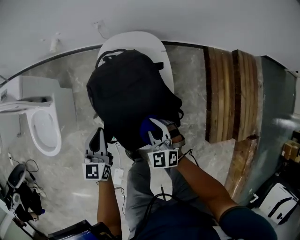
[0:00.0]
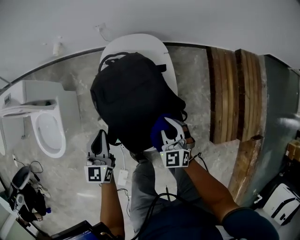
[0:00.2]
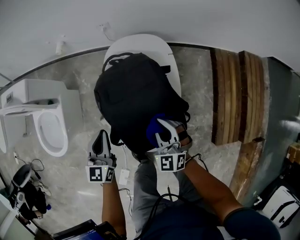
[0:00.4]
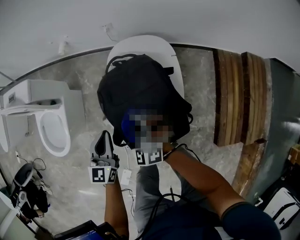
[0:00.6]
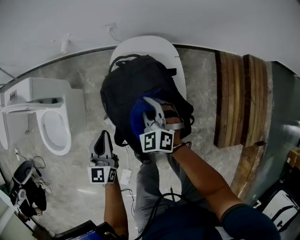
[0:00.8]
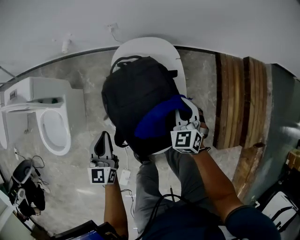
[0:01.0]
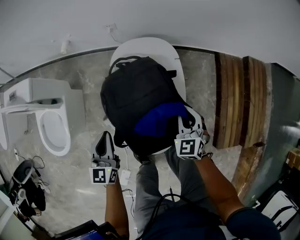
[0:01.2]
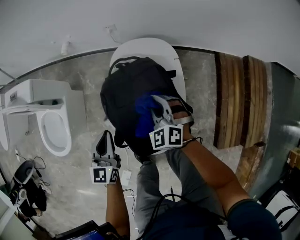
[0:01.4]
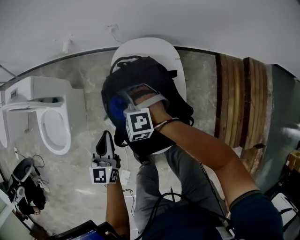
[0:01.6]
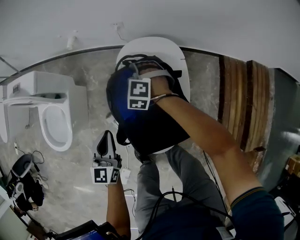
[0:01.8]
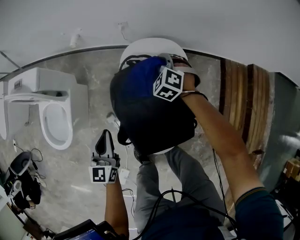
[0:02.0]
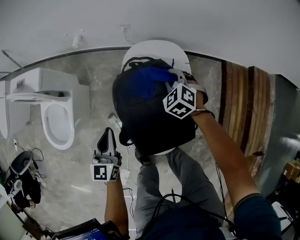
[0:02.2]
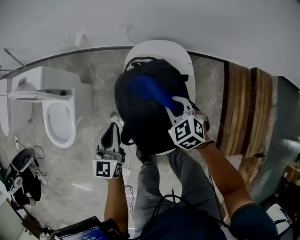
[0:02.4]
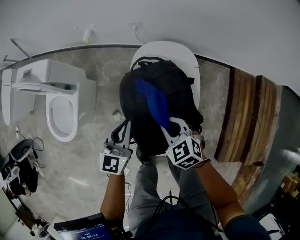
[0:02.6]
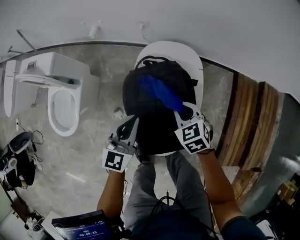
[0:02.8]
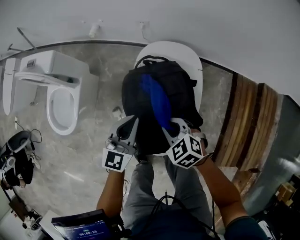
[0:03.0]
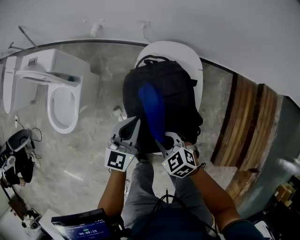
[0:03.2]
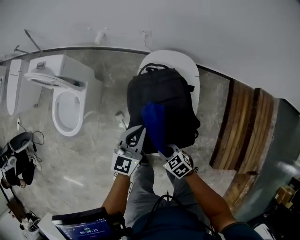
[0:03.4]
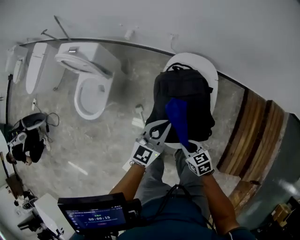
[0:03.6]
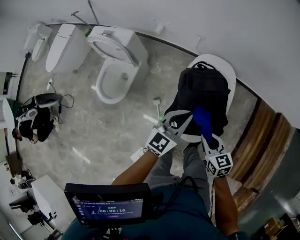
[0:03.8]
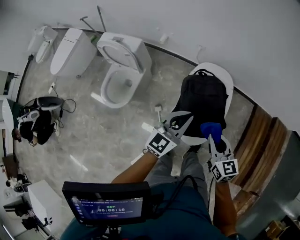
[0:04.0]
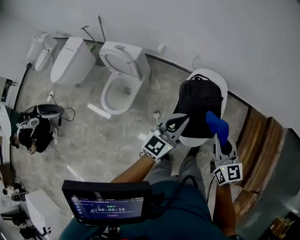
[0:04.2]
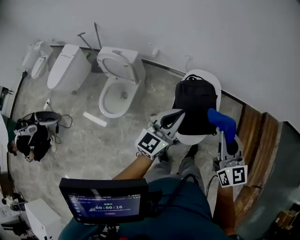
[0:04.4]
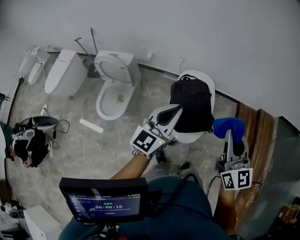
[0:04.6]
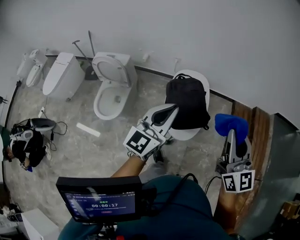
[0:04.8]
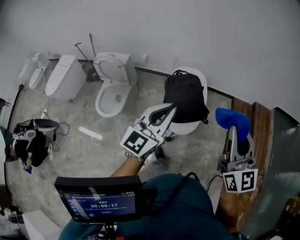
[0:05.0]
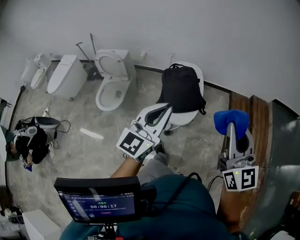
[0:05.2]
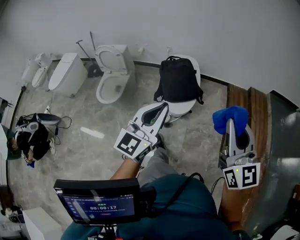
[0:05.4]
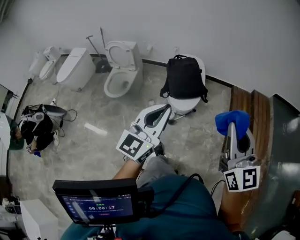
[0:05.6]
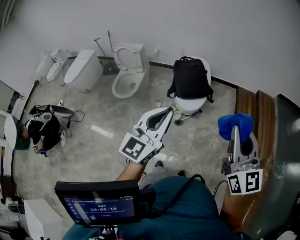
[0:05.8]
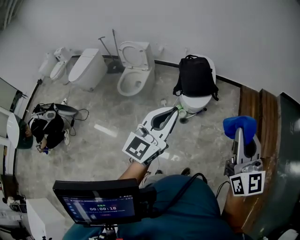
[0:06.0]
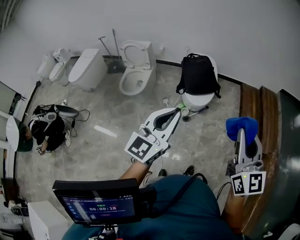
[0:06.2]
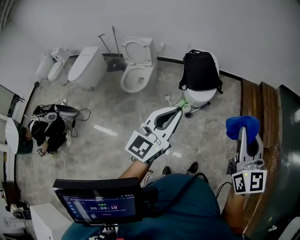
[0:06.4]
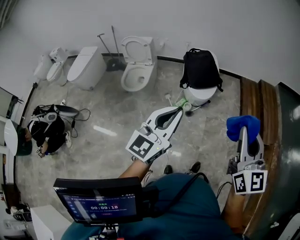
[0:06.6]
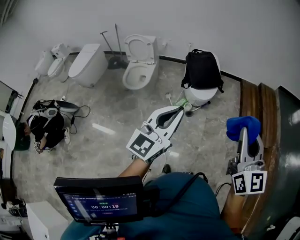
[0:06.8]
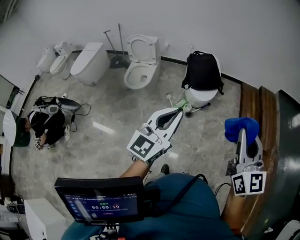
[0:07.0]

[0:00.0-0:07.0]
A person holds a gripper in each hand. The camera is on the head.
0:00.0 to 0:01.4: The right gripper swings left and right, some 20 cm each way, with 3 reversals.
0:01.4 to 0:02.8: The right gripper moves forward and backward over about 25 cm, changing direction 2 times, and swivels about 30 degrees; the left gripper goes some 5 cm to the right.
0:02.8 to 0:04.2: The grippers both shift upward by approximately 30 cm. The right gripper tips its fingers upward by about 40 degrees.
0:04.2 to 0:05.6: Both grippers are carried backward, roughly 40 cm. Both grippers travel together upward, approximately 20 cm. The right gripper turns by about 20 degrees.
0:05.6 to 0:07.0: Both grippers travel together backward and to the left, approximately 20 cm.

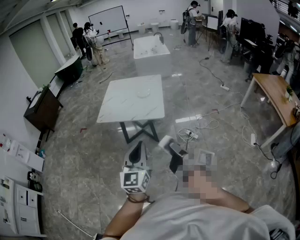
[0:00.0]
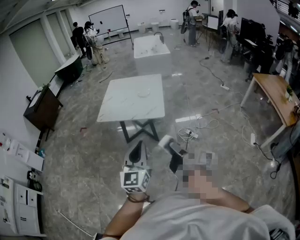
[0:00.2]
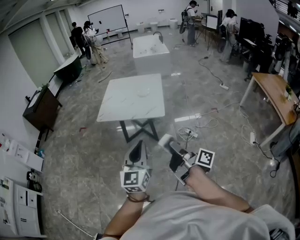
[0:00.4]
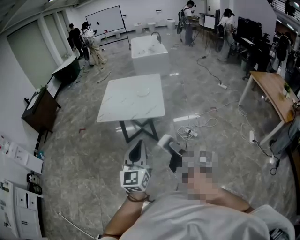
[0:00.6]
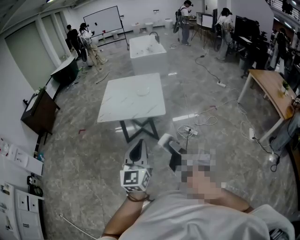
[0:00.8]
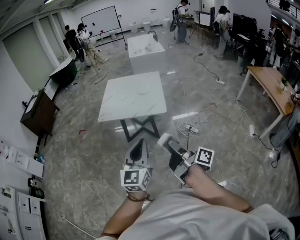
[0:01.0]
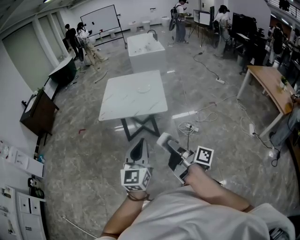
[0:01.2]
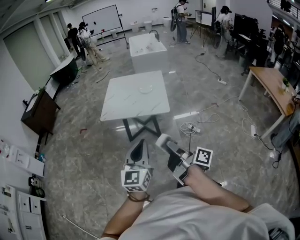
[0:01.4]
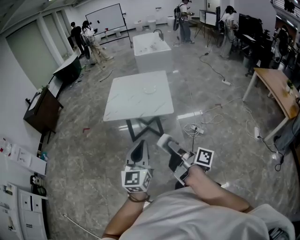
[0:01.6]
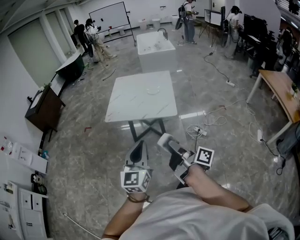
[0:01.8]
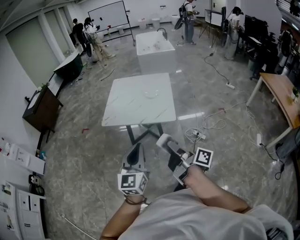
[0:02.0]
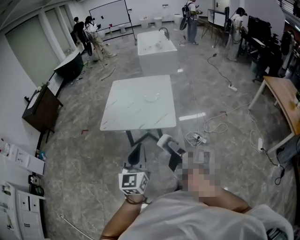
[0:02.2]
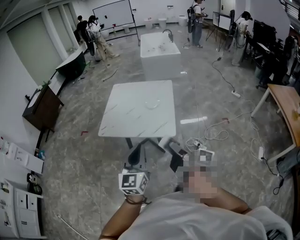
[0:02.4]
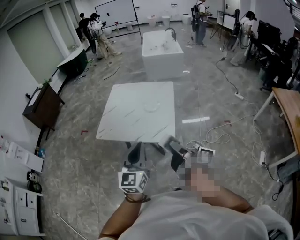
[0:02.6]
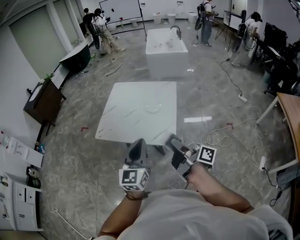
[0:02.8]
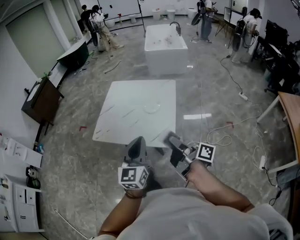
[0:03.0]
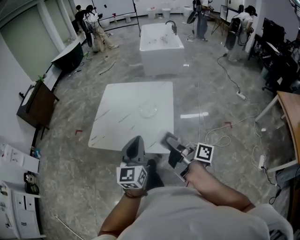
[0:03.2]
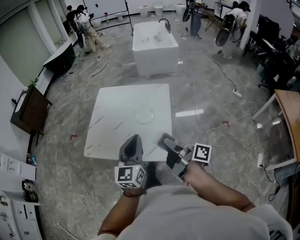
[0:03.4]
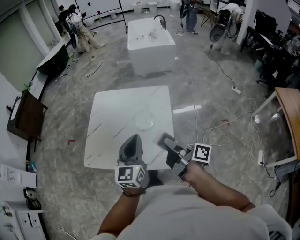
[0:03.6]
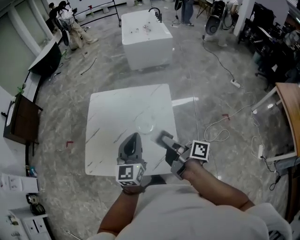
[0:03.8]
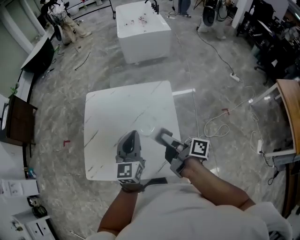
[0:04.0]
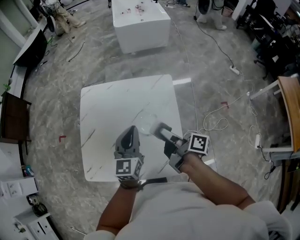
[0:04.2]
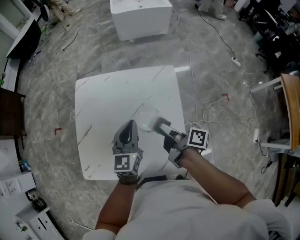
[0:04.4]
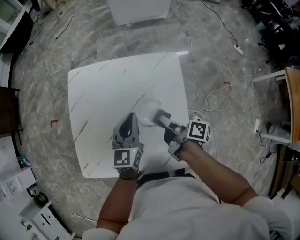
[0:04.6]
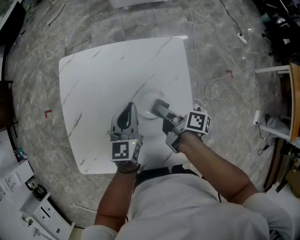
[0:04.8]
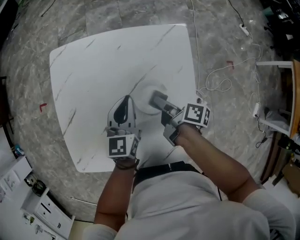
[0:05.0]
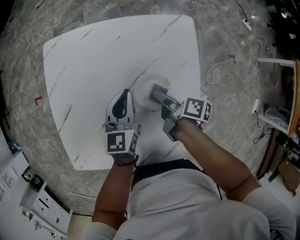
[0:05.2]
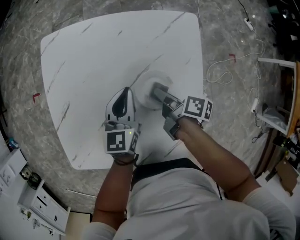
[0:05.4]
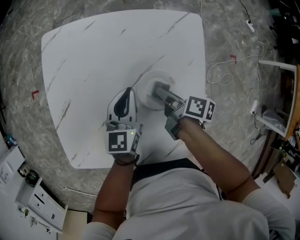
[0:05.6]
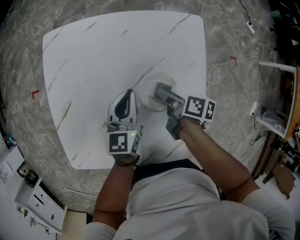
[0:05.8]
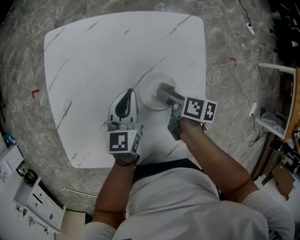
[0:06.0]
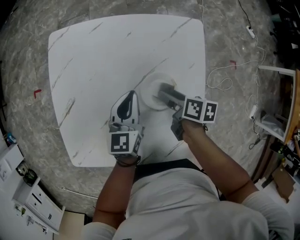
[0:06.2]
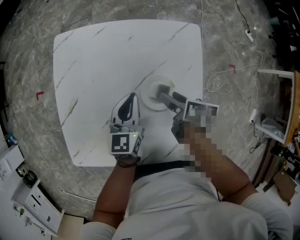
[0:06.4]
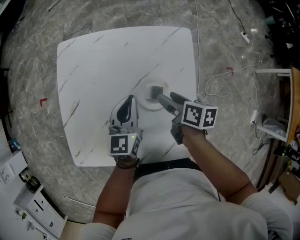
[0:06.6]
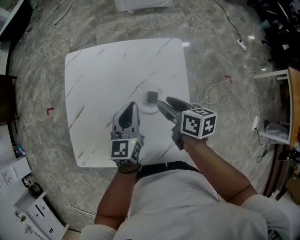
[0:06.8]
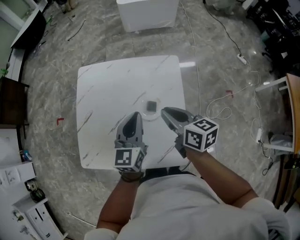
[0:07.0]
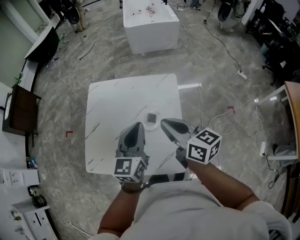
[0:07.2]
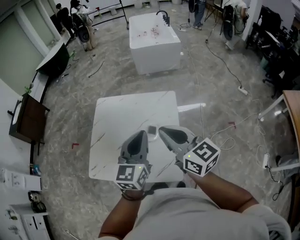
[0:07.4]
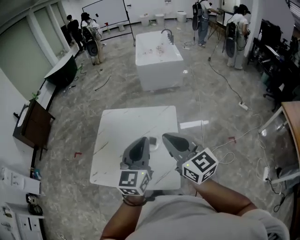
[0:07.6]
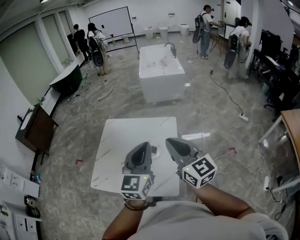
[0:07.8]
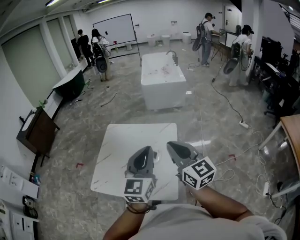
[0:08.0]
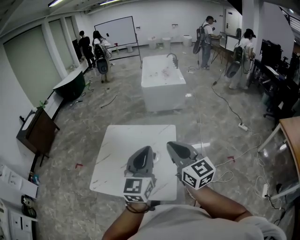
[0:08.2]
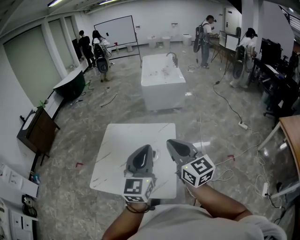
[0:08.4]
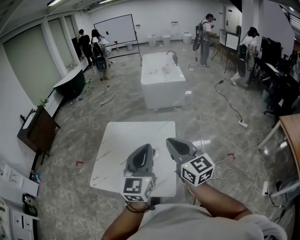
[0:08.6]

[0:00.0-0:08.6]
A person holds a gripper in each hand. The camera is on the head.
0:00.0 to 0:01.4: The left gripper changes place by some 10 cm.
0:01.4 to 0:02.8: The left gripper changes place by approximately 40 cm.
0:02.8 to 0:04.4: The left gripper changes place by some 60 cm.
0:04.4 to 0:05.8: The left gripper travels downward by some 20 cm.
0:05.8 to 0:07.2: The left gripper moves upward, about 35 cm.
0:07.2 to 0:08.6: The left gripper moves approximately 30 cm.

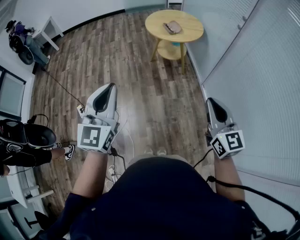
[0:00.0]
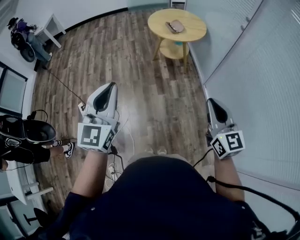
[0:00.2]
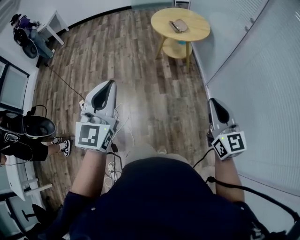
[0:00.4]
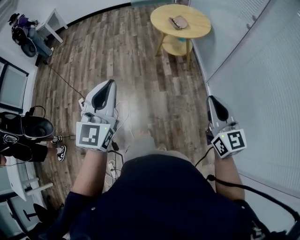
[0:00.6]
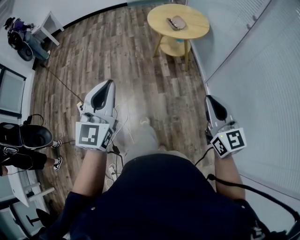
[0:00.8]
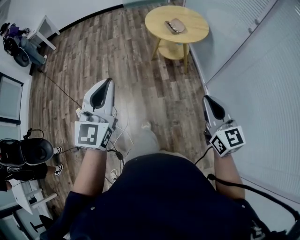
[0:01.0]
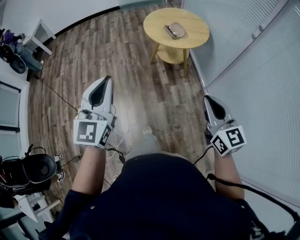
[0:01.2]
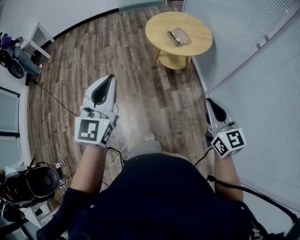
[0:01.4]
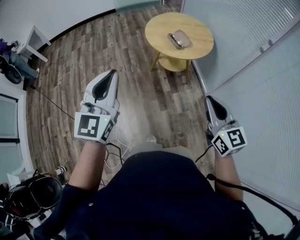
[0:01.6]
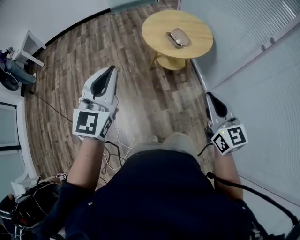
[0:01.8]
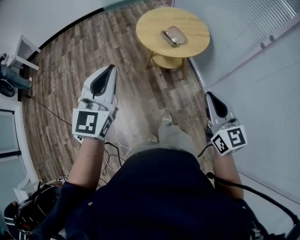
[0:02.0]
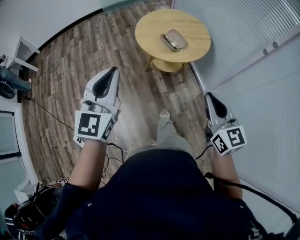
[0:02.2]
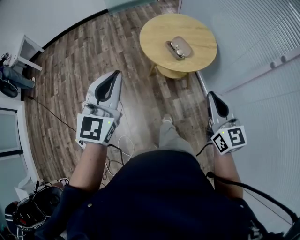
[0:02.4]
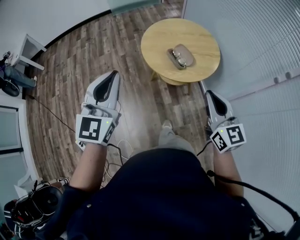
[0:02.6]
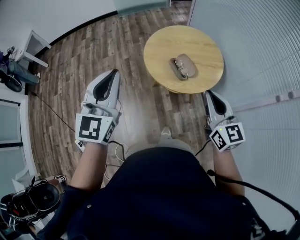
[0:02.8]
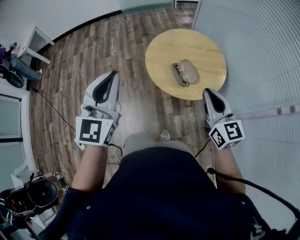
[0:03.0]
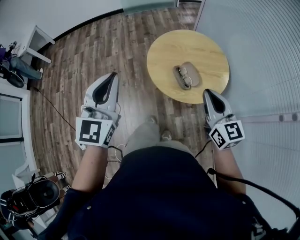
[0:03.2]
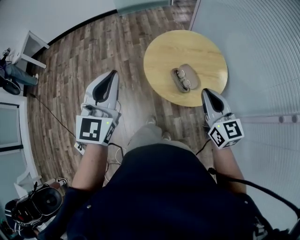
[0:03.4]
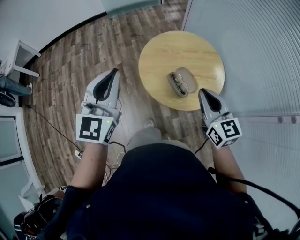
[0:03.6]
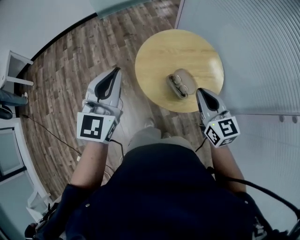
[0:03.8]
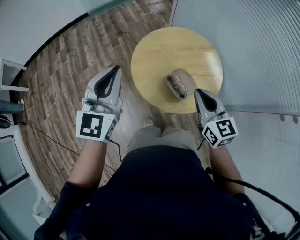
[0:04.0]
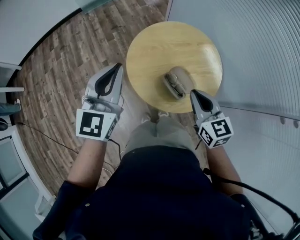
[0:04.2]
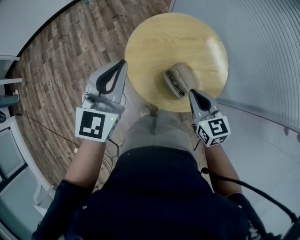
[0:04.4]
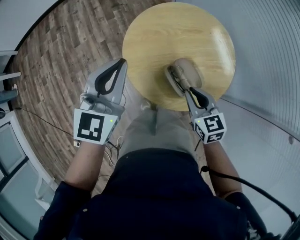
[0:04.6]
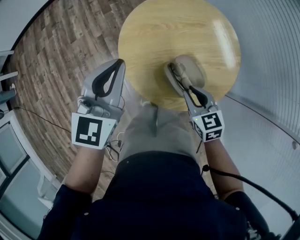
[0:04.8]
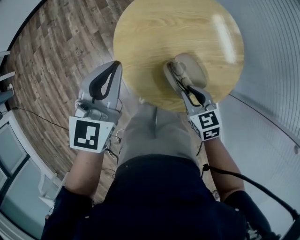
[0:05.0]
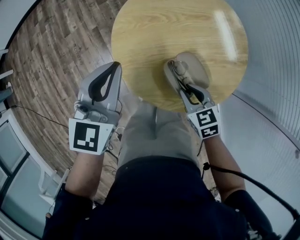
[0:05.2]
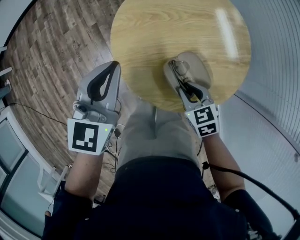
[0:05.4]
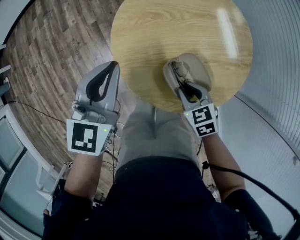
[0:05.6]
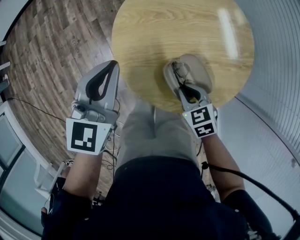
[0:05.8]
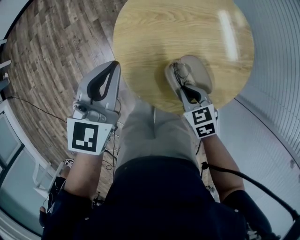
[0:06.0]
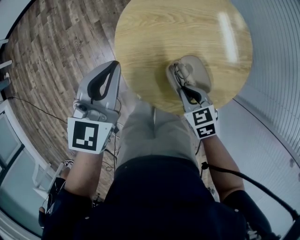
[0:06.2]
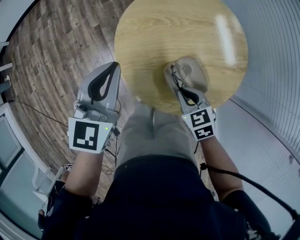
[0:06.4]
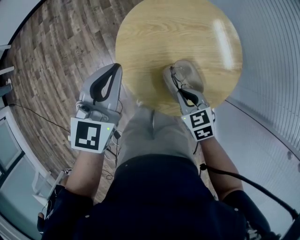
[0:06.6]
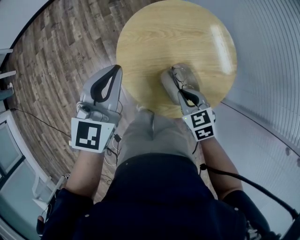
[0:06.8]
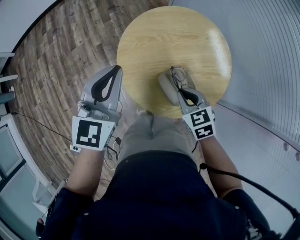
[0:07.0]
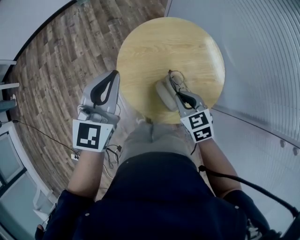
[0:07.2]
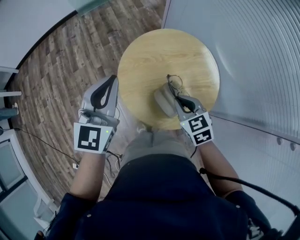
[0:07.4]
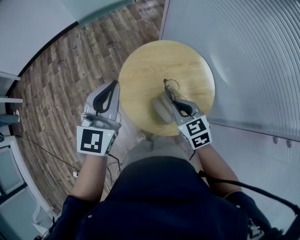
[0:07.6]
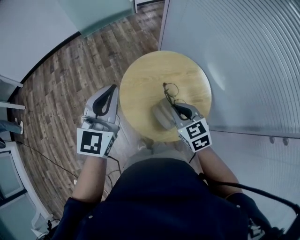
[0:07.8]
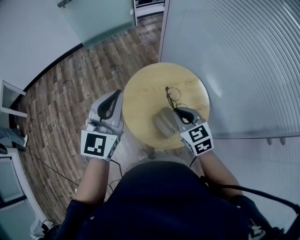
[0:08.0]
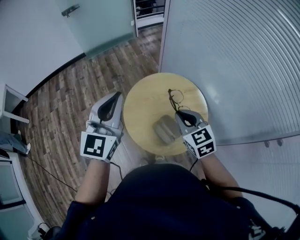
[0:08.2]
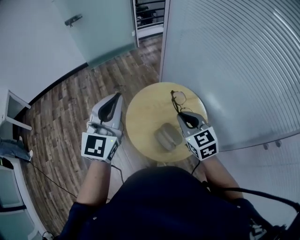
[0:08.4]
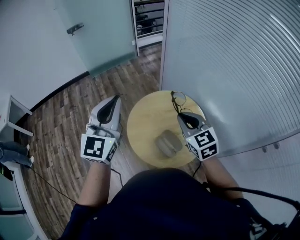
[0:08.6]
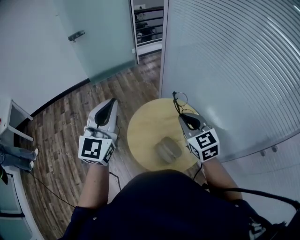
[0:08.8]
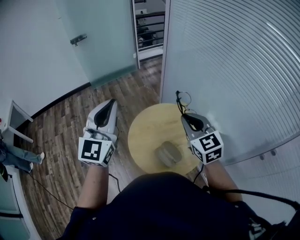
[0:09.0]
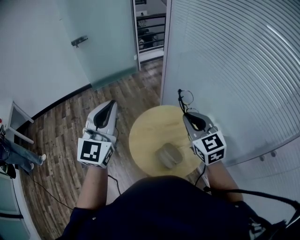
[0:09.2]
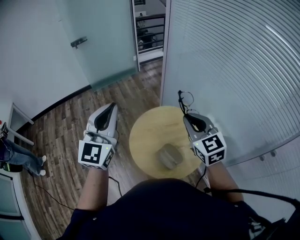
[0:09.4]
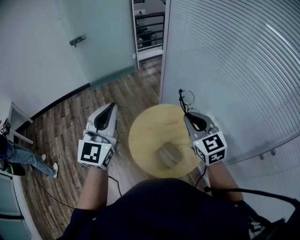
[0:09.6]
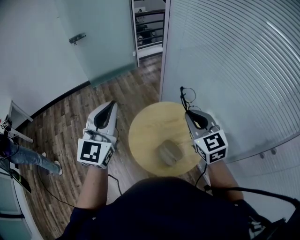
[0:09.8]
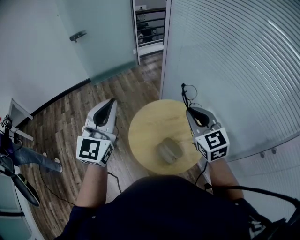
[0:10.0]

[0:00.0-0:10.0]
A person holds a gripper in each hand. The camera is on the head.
0:00.0 to 0:01.4: Both grippers move forward, some 30 cm.
0:01.4 to 0:02.8: Both grippers travel together forward, roughly 35 cm.
0:02.8 to 0:04.2: The left gripper travels forward by approximately 30 cm, while the right gripper travels forward and downward by roughly 25 cm.
0:04.2 to 0:05.8: Both grippers travel together downward, roughly 25 cm. The right gripper tilts its fingers approximately 30 degrees downward.
0:05.8 to 0:07.2: Both grippers move upward, about 20 cm.
0:07.2 to 0:08.6: Both grippers travel together upward, approximately 25 cm. The left gripper turns by approximately 20 degrees. Meanwhile the right gripper turns by some 30 degrees.
0:08.6 to 0:10.0: The right gripper is displaced upward by about 10 cm.
